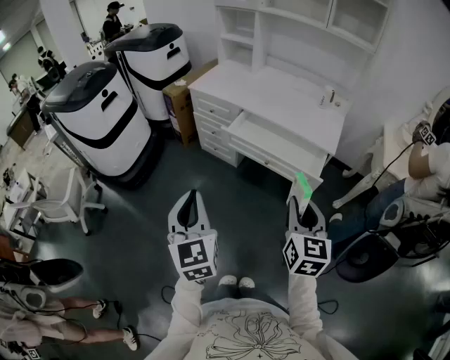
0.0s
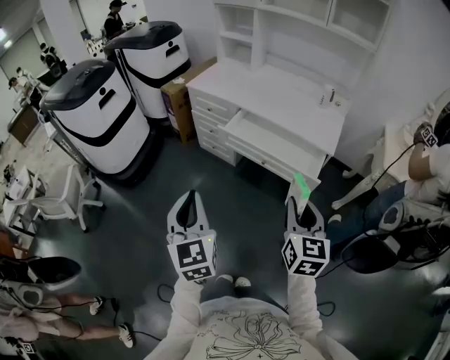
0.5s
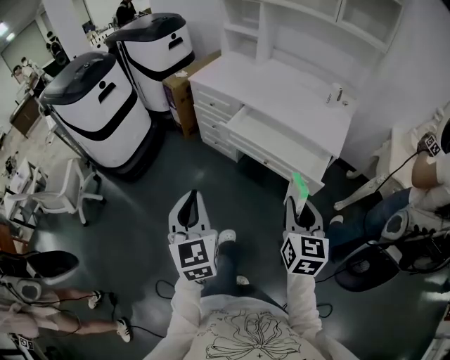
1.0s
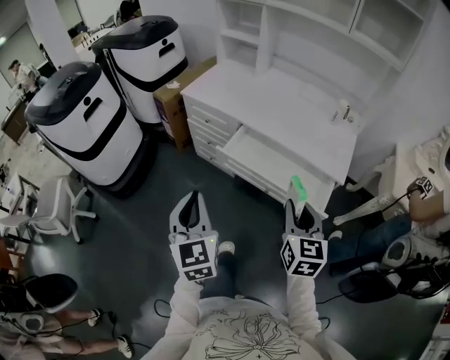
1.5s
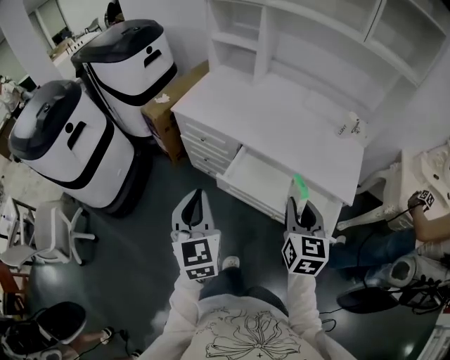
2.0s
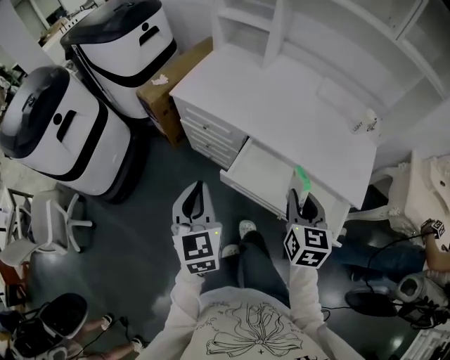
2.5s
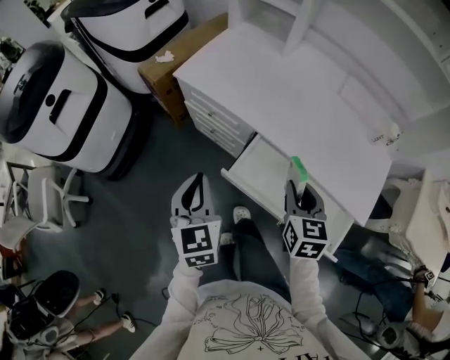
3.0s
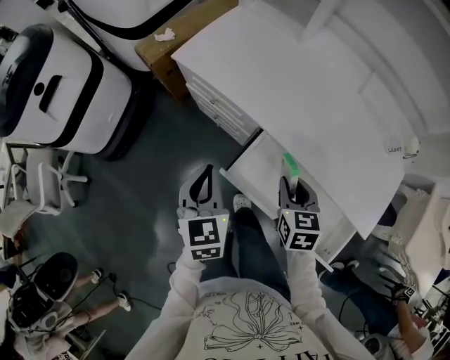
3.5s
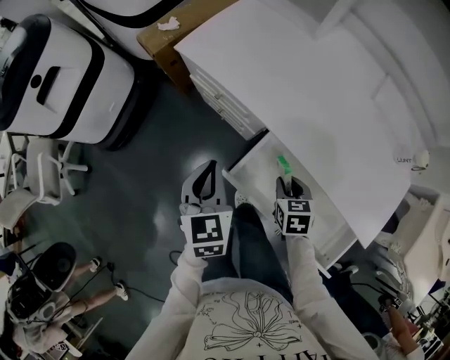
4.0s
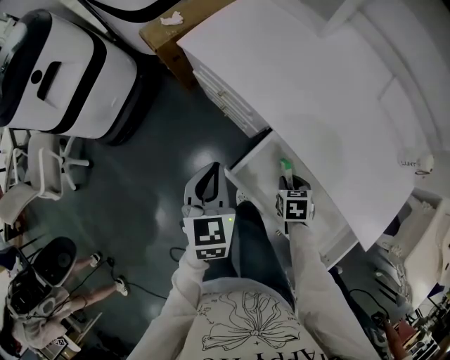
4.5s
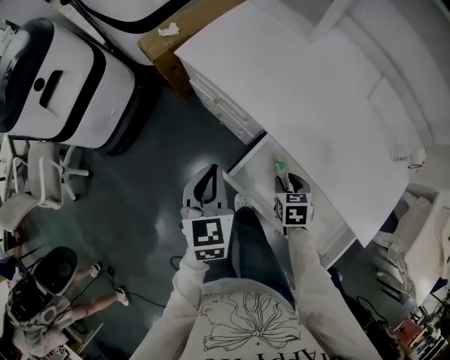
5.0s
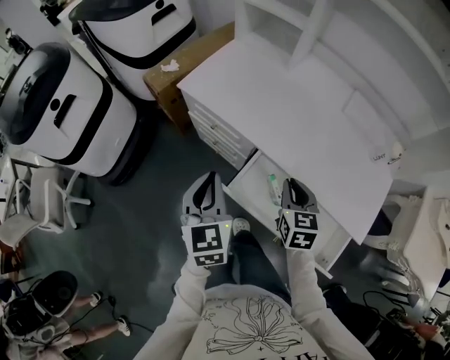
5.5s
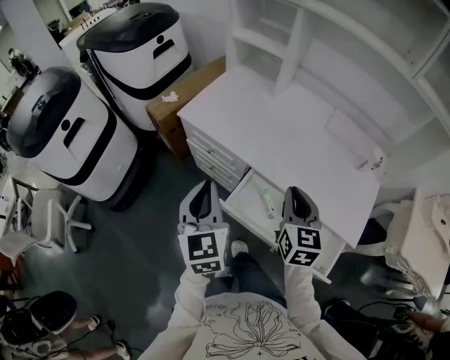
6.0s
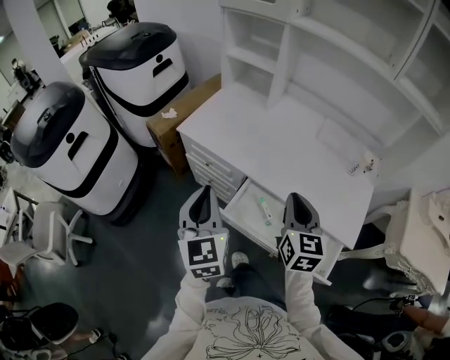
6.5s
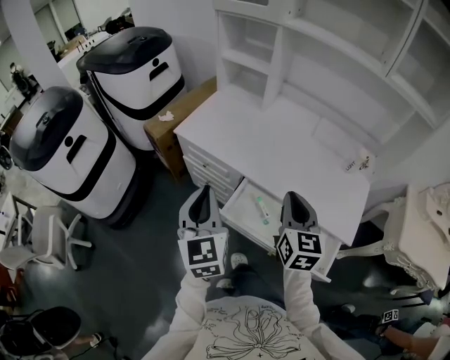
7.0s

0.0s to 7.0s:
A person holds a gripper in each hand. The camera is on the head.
0.0s to 2.0s: The grippers both shift forward by about 35 cm.
2.0s to 3.5s: The two grippers go about 25 cm forward and downward. The right gripper rotates some 30 degrees.
3.5s to 5.0s: The right gripper goes some 10 cm downward.
5.0s to 7.0s: The left gripper travels upward by roughly 20 cm, and turns by about 20 degrees. The right gripper heads upward, covering some 35 cm, tilts its fingers roughly 40 degrees upward, and closes.

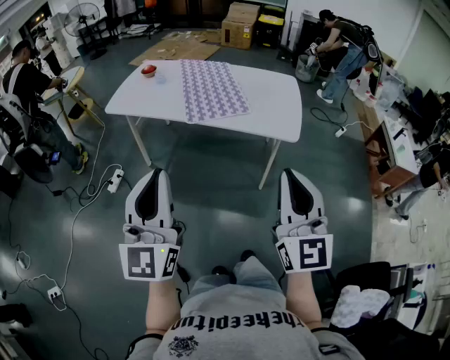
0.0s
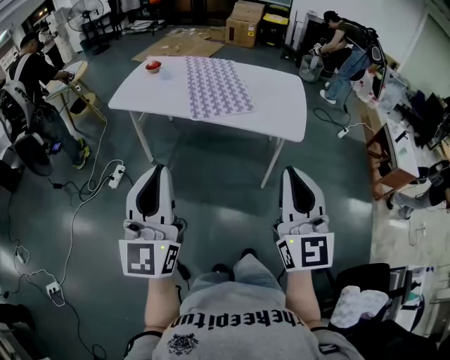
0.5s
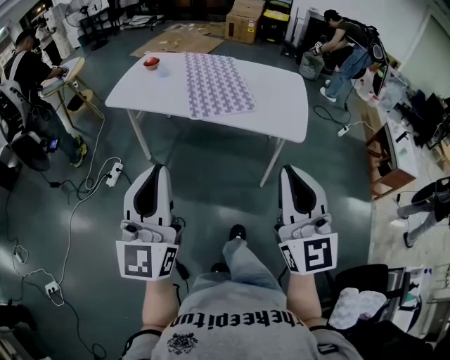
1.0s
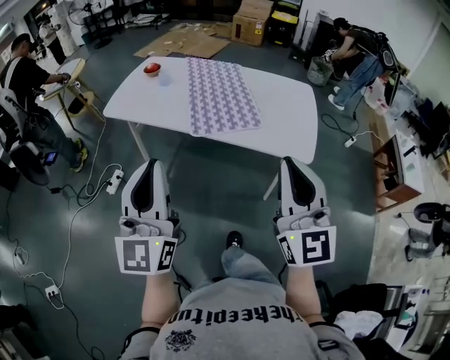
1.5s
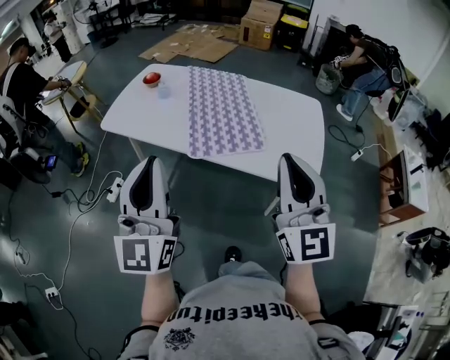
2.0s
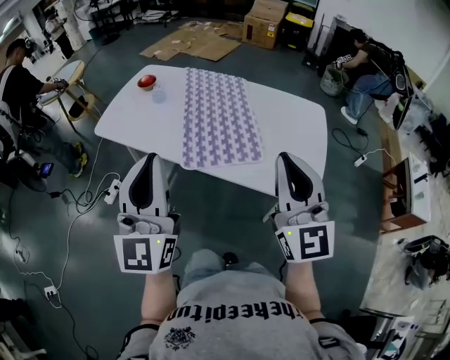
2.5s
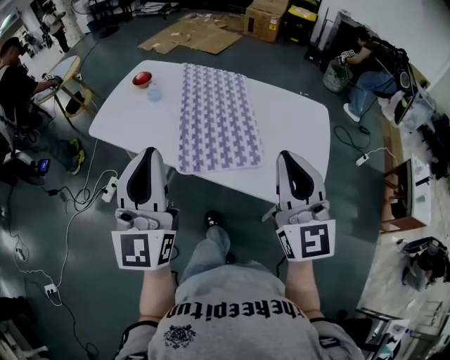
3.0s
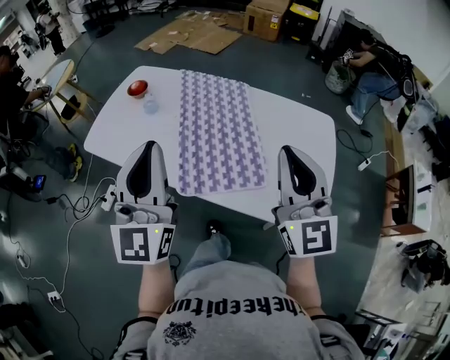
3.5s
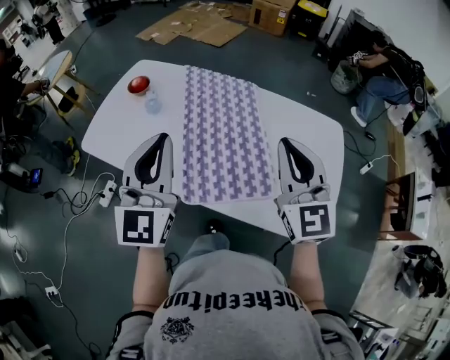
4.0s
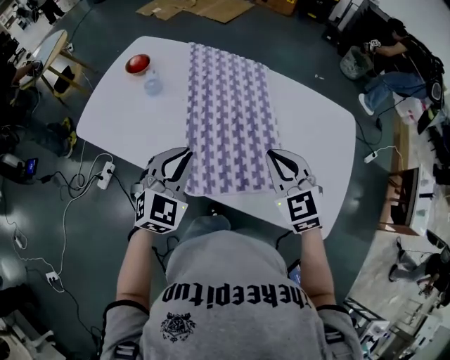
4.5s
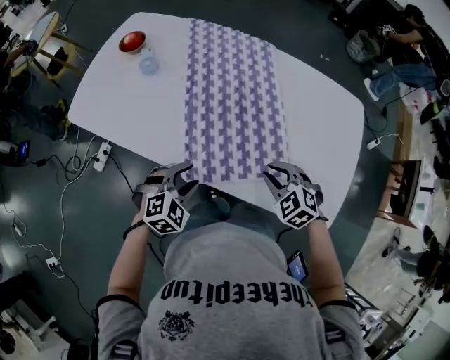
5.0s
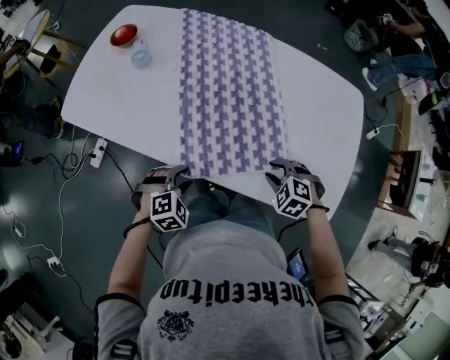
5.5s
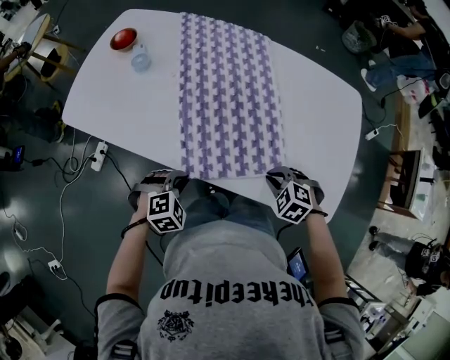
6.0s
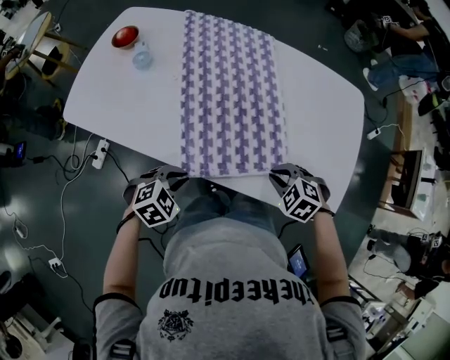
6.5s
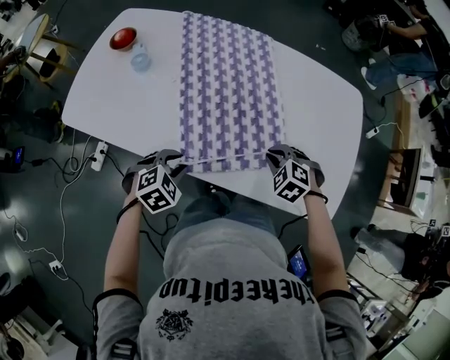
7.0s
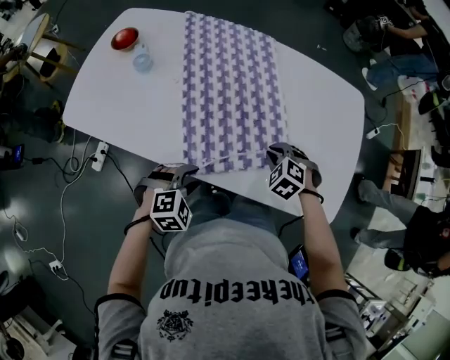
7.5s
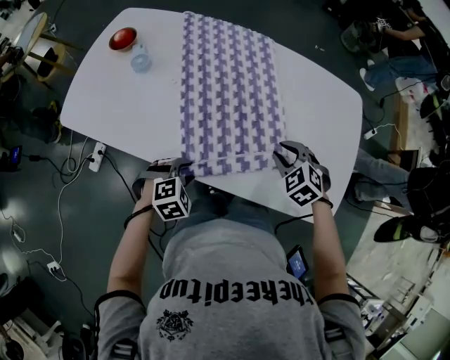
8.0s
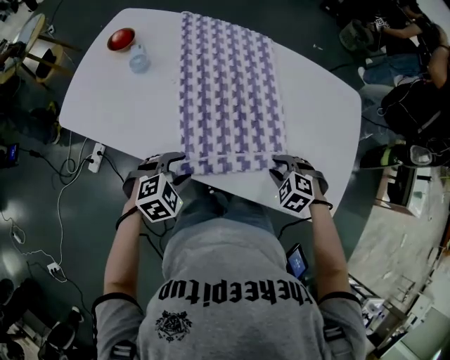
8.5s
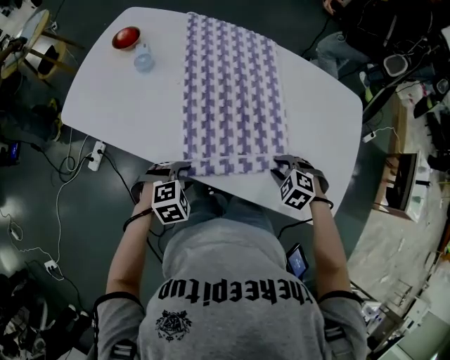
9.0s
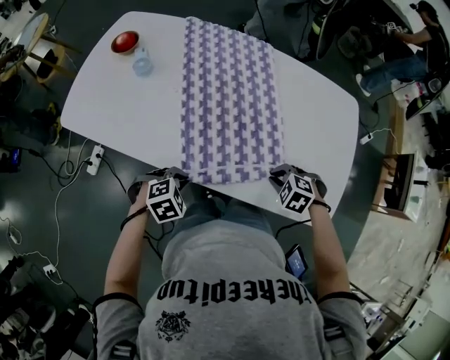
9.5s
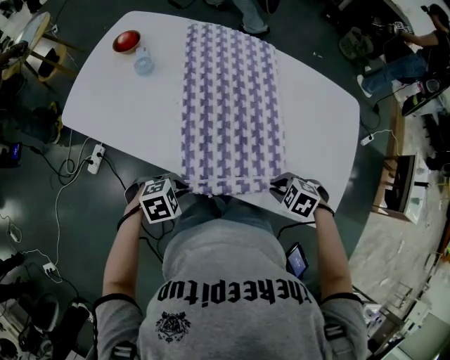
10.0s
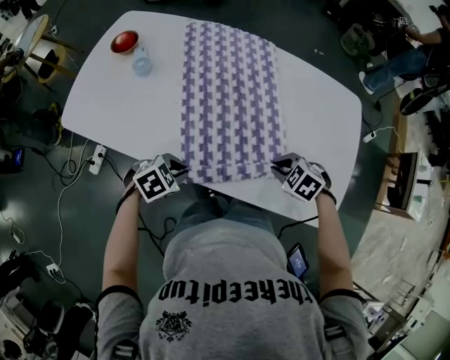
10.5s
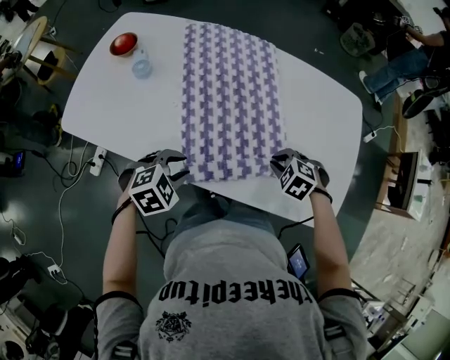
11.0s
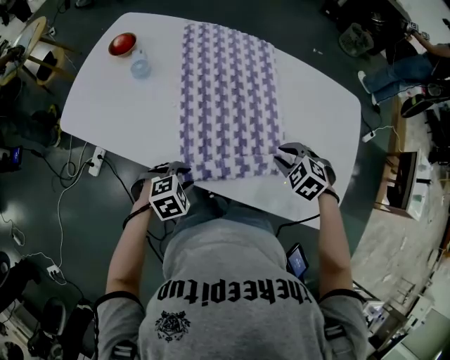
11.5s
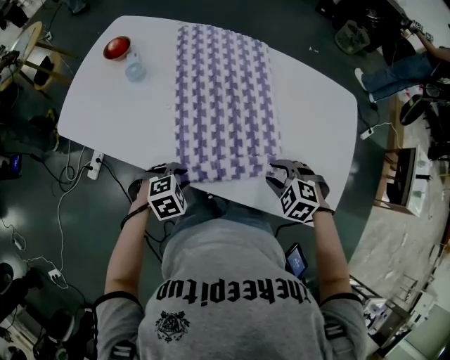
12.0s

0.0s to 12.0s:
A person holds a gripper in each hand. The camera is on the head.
0.0s to 2.0s: The grippers both shift forward by about 30 cm.
2.0s to 4.0s: The two grippers go roughly 35 cm forward.
4.0s to 6.0s: Both grippers move downward, about 40 cm. The right gripper tips its fingers downward by about 70 degrees, and opens, then closes once more. The left gripper points its fingers approximately 70 degrees further downward, and opens and closes again.
6.0s to 8.0s: The left gripper heads forward, covering approximately 5 cm, and opens up; the right gripper moves forward, roughly 15 cm.
8.0s to 10.0s: The left gripper rotates some 20 degrees, and closes; the right gripper shifts by approximately 5 cm, and rotates about 30 degrees.
10.0s to 12.0s: The left gripper opens up, while the right gripper opens up.

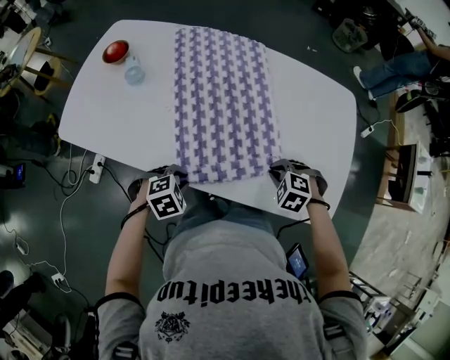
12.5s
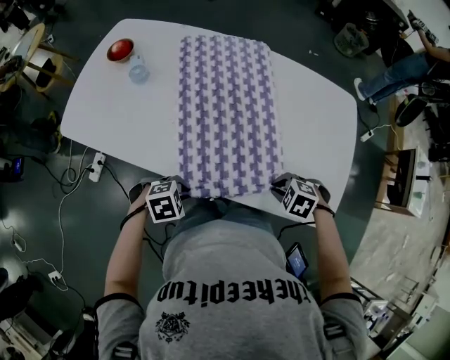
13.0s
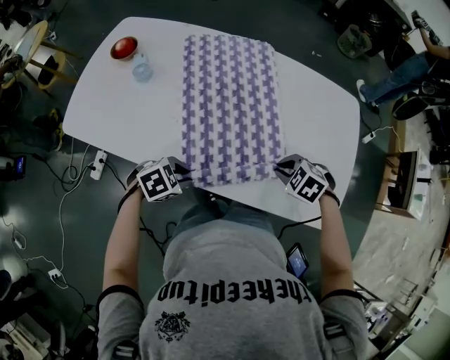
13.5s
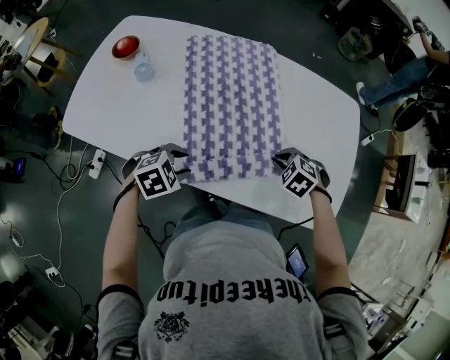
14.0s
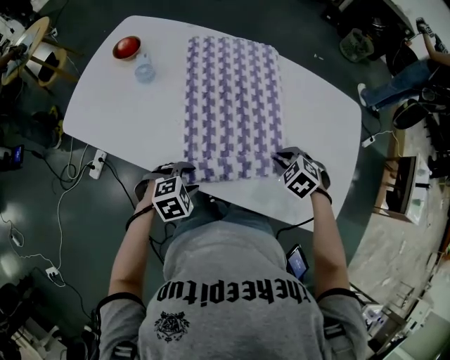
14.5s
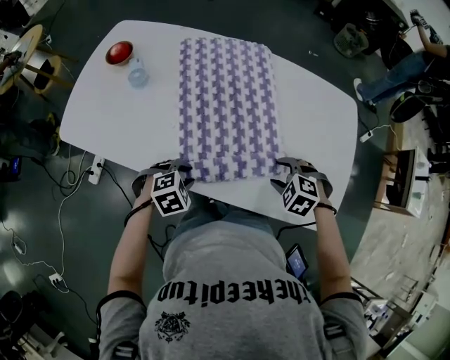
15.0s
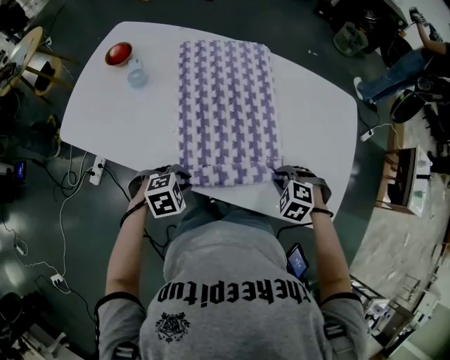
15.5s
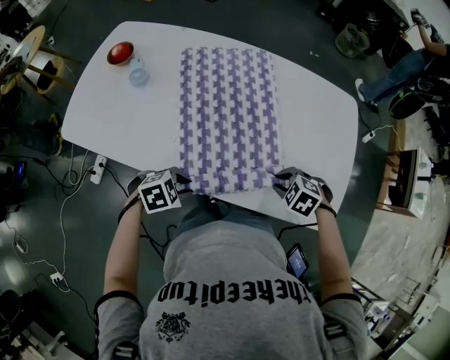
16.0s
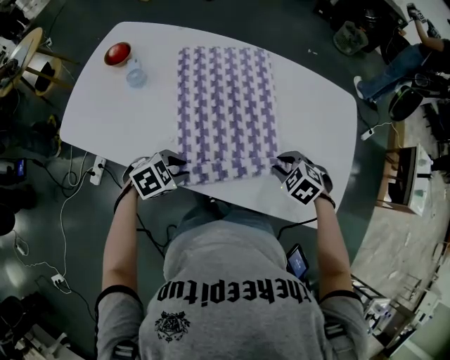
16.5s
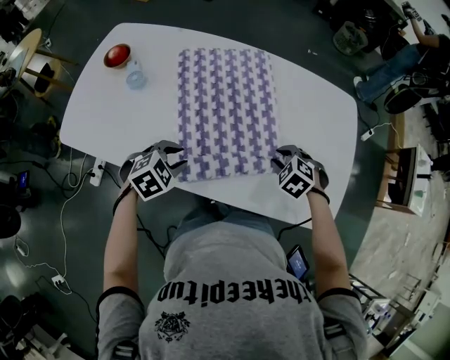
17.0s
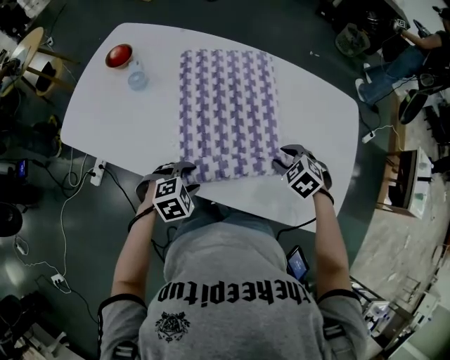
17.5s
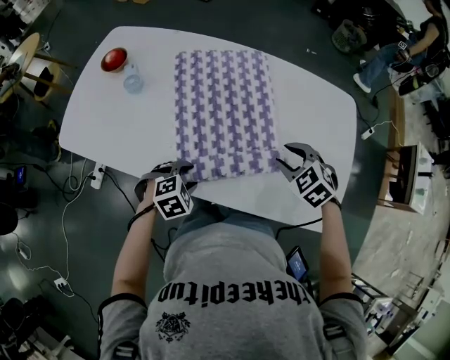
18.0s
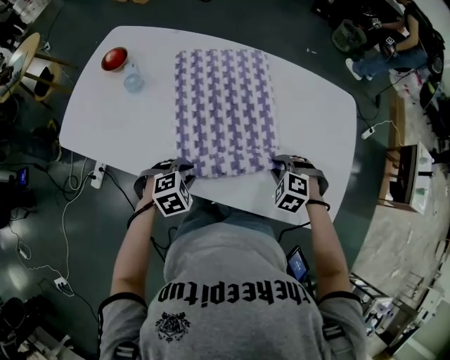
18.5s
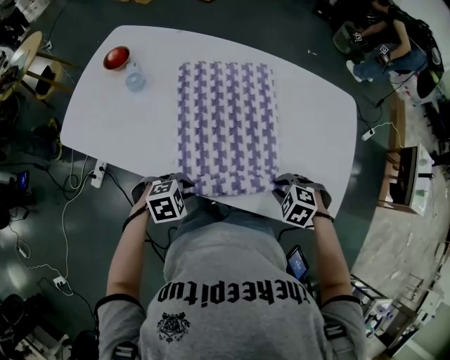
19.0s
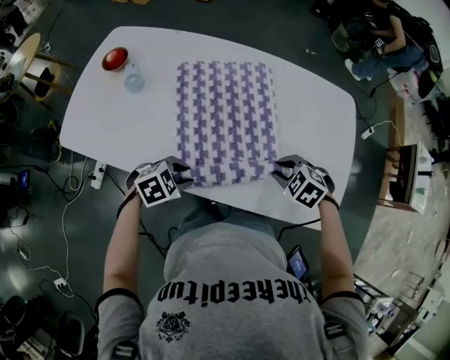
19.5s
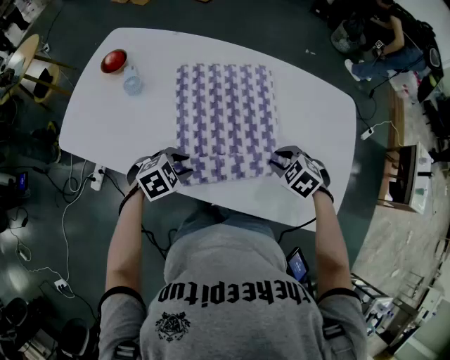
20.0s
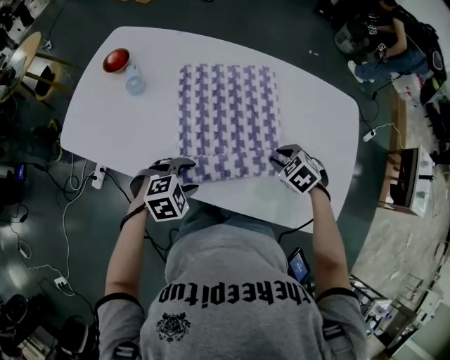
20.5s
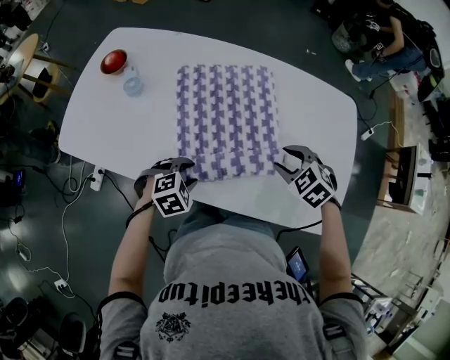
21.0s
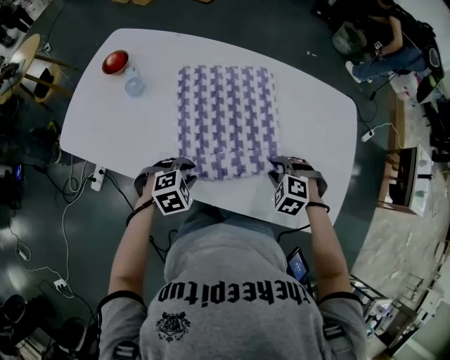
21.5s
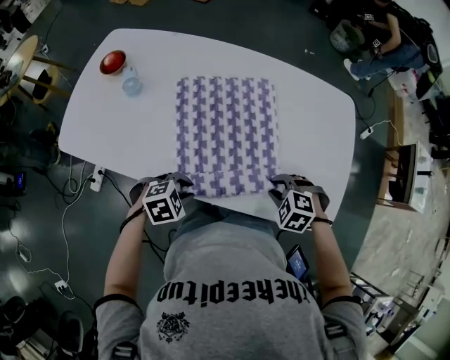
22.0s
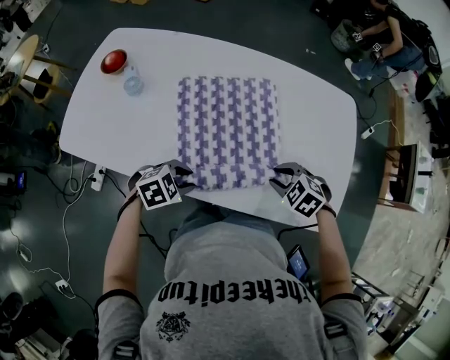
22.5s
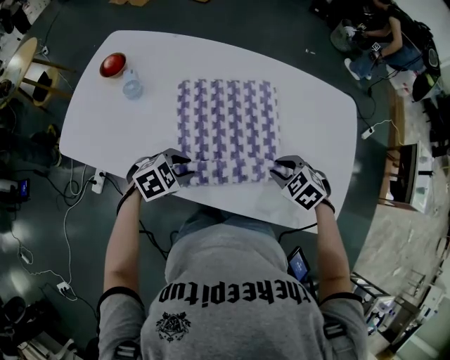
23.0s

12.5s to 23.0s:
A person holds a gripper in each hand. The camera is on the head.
12.5s to 14.5s: The left gripper opens; the right gripper ends up approximately 5 cm from where it was.
14.5s to 16.5s: The left gripper moves roughly 10 cm, and closes up. Meanwhile the right gripper shifts by roughly 5 cm, and opens, then closes again.
16.5s to 19.0s: The left gripper travels upward and back again, some 5 cm each way, and opens, then closes once more, while the right gripper goes upward and returns, approximately 5 cm each way.
19.0s to 21.0s: The right gripper shifts by approximately 15 cm, swivels some 20 degrees, and opens up. Meanwhile the left gripper shifts by approximately 10 cm, and opens up.
21.0s to 23.0s: The left gripper ends up some 10 cm from where it was.
